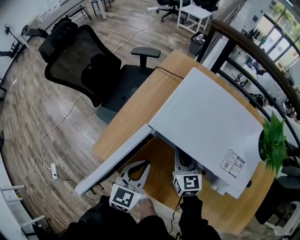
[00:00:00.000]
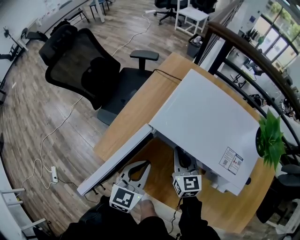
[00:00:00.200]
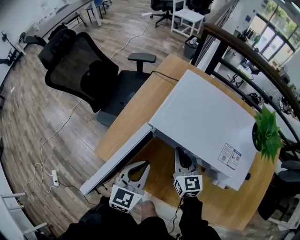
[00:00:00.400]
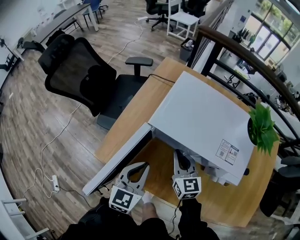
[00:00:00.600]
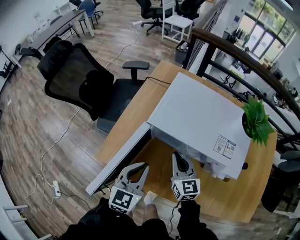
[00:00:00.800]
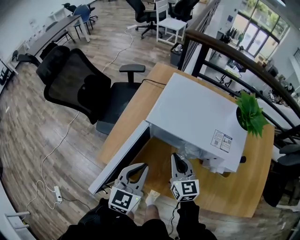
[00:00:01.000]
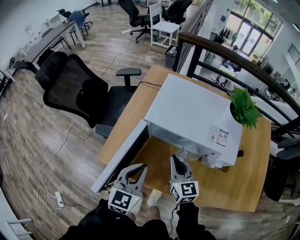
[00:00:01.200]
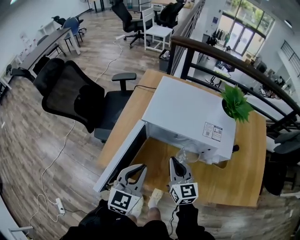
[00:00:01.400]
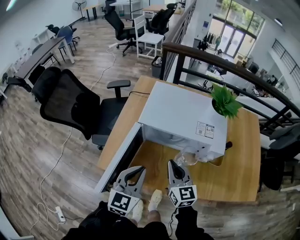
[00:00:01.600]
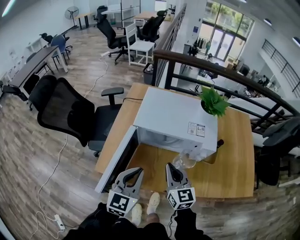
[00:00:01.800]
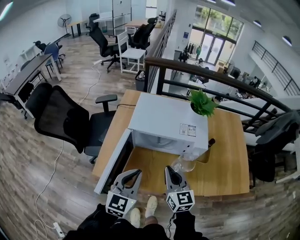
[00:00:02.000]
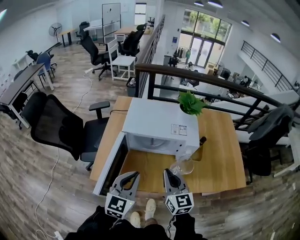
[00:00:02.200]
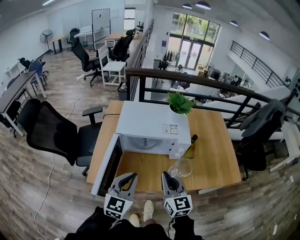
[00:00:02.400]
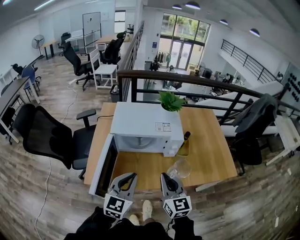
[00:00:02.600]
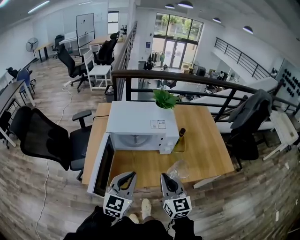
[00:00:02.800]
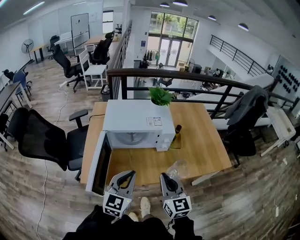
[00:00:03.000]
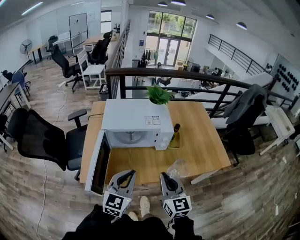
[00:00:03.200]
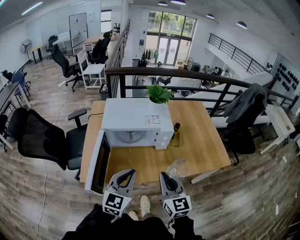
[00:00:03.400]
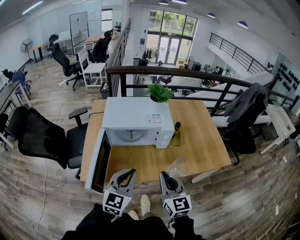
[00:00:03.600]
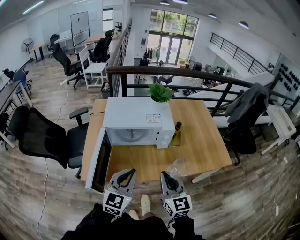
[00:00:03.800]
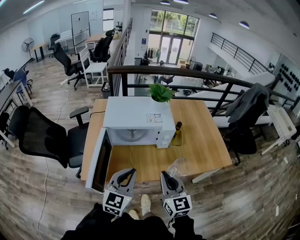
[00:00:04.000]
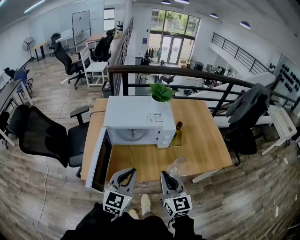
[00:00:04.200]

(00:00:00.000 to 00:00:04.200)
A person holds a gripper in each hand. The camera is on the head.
00:00:00.000 - 00:00:01.400: The left gripper shifts approximately 15 cm upward and backward; the right gripper travels backward and upward by roughly 20 cm.
00:00:01.400 - 00:00:02.800: Both grippers move backward, upward and to the right, roughly 25 cm. The left gripper swivels approximately 20 degrees; the right gripper swivels approximately 20 degrees.
00:00:02.800 - 00:00:04.200: The grippers move only a little.

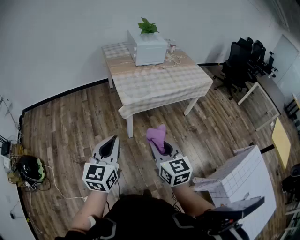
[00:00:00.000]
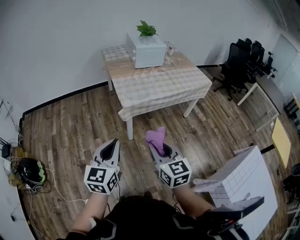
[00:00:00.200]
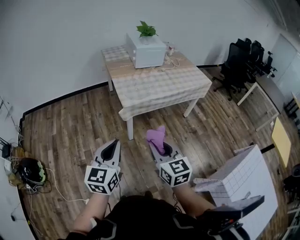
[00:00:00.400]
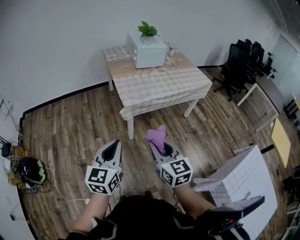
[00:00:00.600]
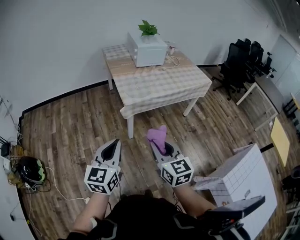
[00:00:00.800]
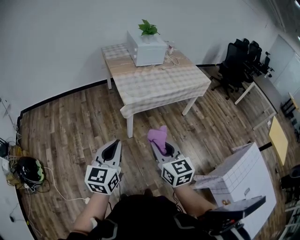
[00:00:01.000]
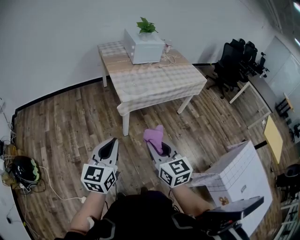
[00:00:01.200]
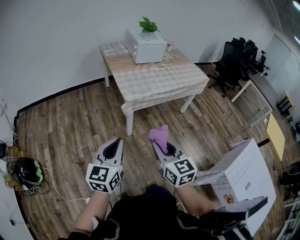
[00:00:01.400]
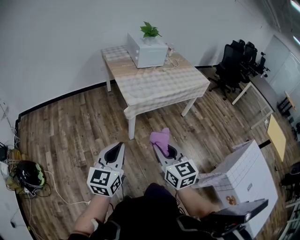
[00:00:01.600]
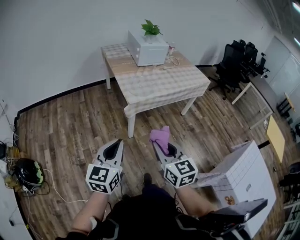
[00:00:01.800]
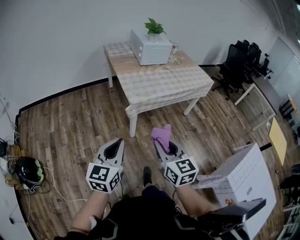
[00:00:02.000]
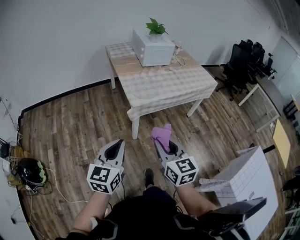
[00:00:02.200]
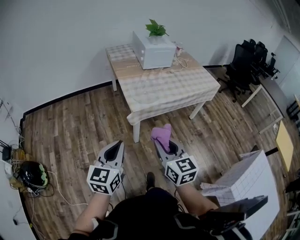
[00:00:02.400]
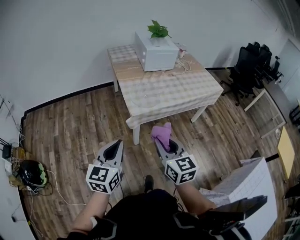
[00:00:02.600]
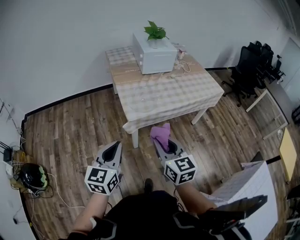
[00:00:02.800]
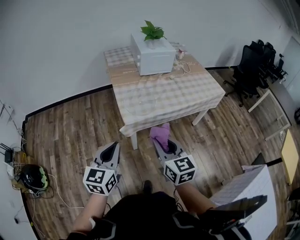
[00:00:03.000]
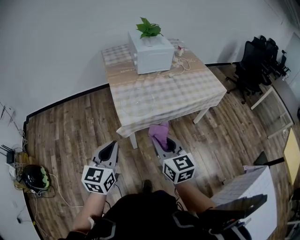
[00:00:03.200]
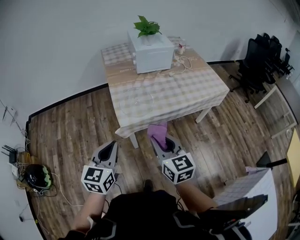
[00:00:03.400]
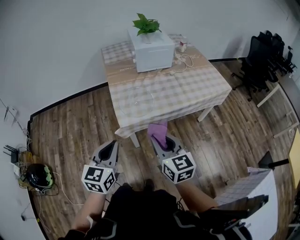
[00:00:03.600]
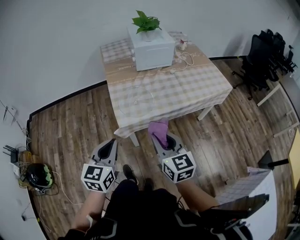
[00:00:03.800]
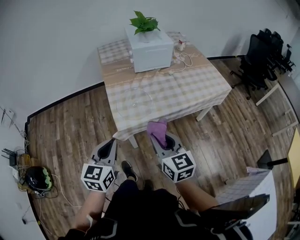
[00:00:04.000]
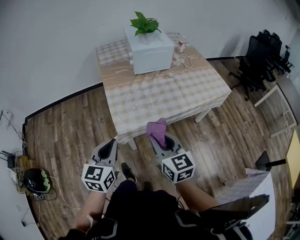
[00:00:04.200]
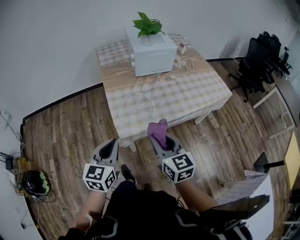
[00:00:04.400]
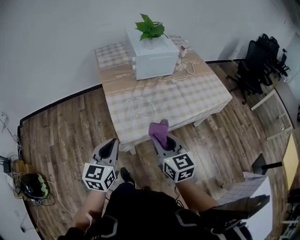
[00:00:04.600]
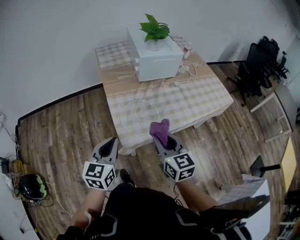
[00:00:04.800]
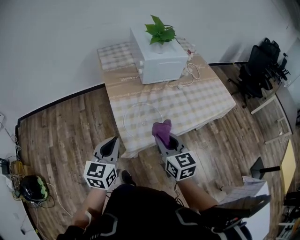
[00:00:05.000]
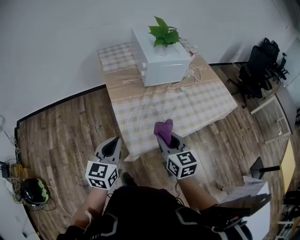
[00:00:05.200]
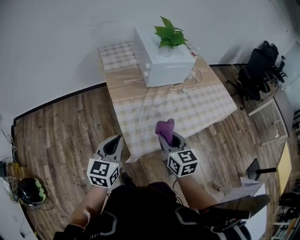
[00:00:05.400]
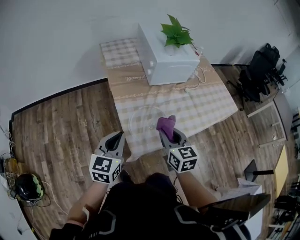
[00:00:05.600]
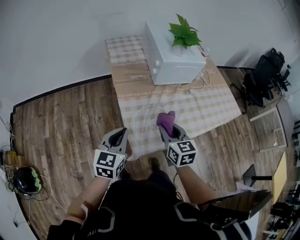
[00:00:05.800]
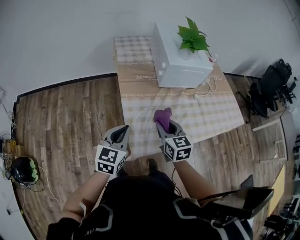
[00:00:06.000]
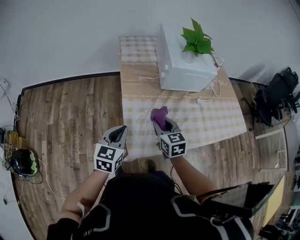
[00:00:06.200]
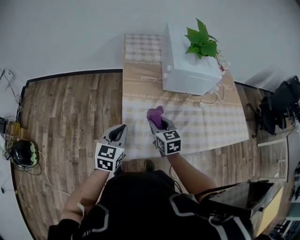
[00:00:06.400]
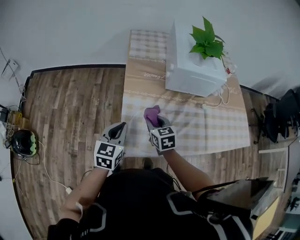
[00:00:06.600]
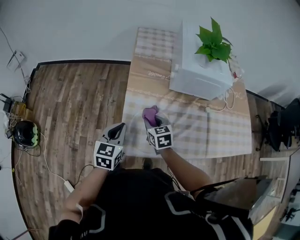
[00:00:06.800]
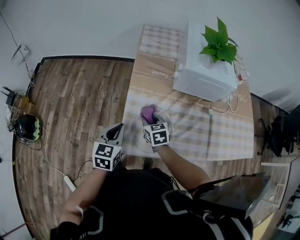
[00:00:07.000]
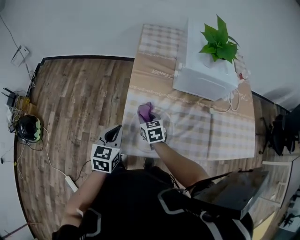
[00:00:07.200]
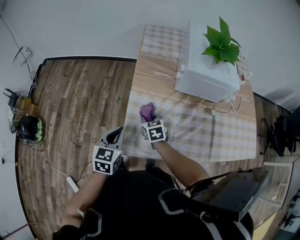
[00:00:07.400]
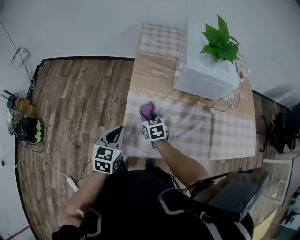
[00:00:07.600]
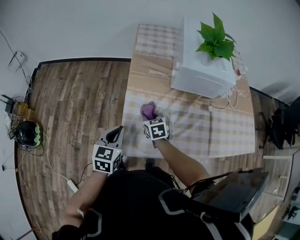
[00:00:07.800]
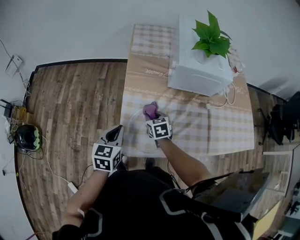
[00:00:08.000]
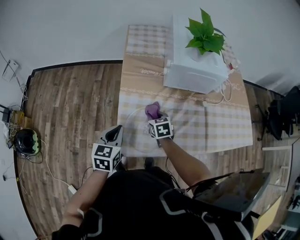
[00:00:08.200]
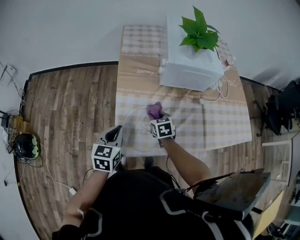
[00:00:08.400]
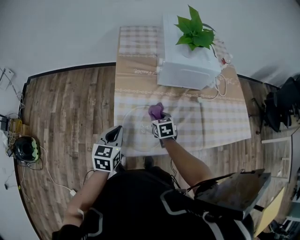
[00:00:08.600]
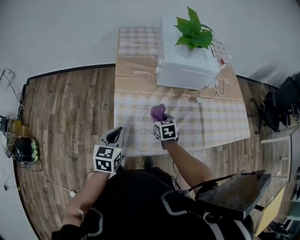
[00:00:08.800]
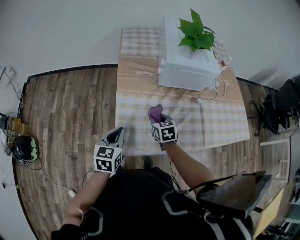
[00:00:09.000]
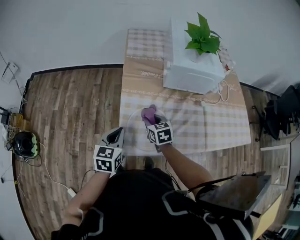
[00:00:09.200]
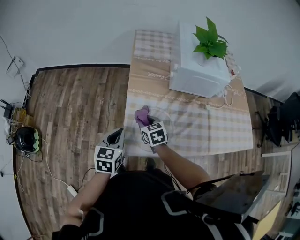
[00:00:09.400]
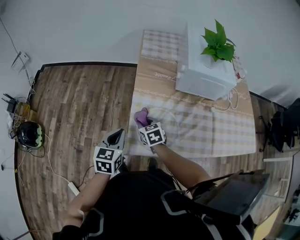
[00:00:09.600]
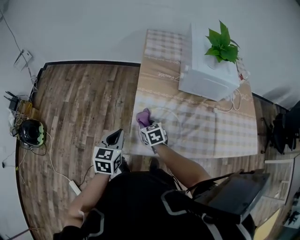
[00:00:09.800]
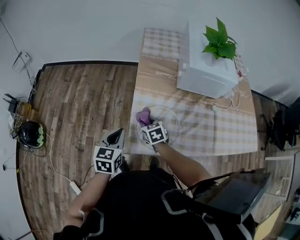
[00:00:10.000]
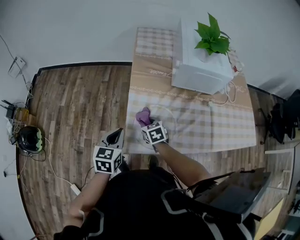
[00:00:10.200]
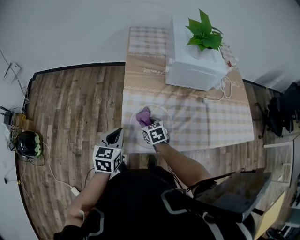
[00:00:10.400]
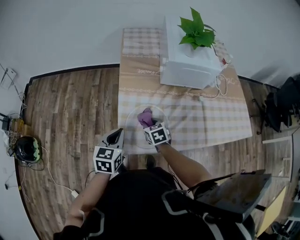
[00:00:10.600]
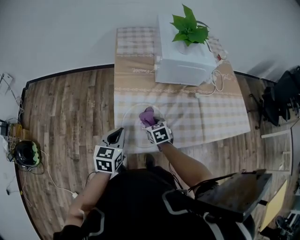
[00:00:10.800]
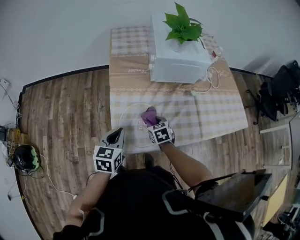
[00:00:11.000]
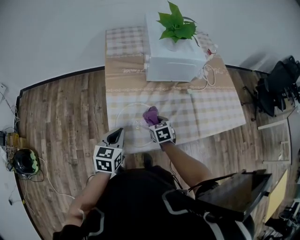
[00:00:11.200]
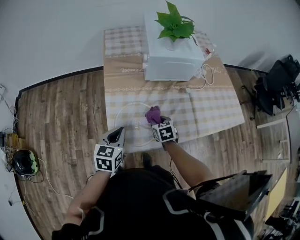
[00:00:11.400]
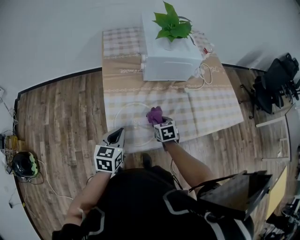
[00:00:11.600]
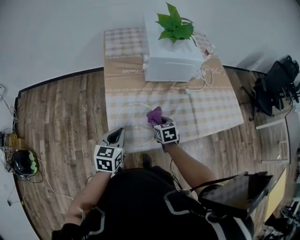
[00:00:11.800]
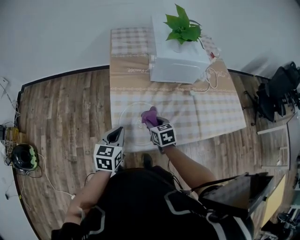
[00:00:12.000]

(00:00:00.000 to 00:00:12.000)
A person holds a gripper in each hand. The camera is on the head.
00:00:00.000 - 00:00:01.600: The right gripper is displaced to the left and backward by some 10 cm. Meanwhile the left gripper goes roughly 5 cm to the left.
00:00:01.600 - 00:00:03.000: The two grippers go about 20 cm forward.
00:00:03.000 - 00:00:04.400: Both grippers move forward, roughly 15 cm.
00:00:04.400 - 00:00:06.000: Both grippers travel together forward and to the left, some 25 cm.
00:00:06.000 - 00:00:07.600: The left gripper goes about 5 cm downward, and rotates some 20 degrees; the right gripper moves downward and forward, about 20 cm, and rotates approximately 30 degrees.
00:00:07.600 - 00:00:09.000: The right gripper moves to the right, approximately 10 cm.
00:00:09.000 - 00:00:10.400: The right gripper shifts approximately 10 cm to the left.
00:00:10.400 - 00:00:12.000: The right gripper is displaced to the right by roughly 10 cm.

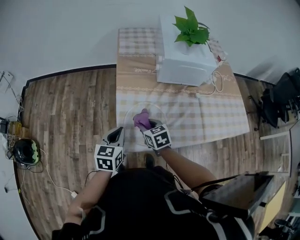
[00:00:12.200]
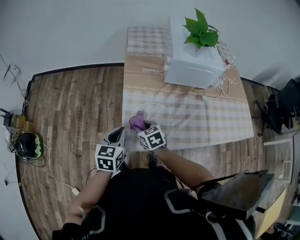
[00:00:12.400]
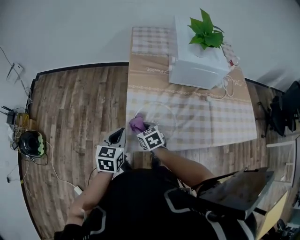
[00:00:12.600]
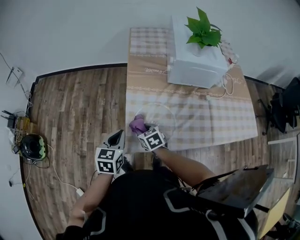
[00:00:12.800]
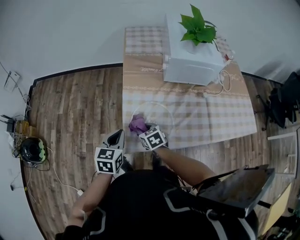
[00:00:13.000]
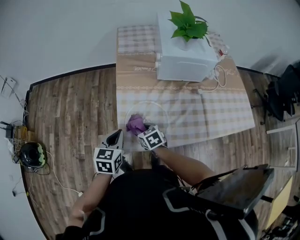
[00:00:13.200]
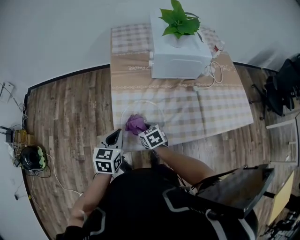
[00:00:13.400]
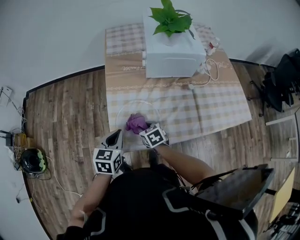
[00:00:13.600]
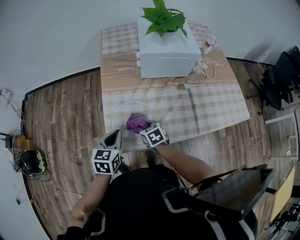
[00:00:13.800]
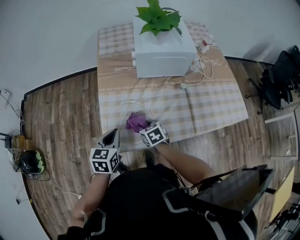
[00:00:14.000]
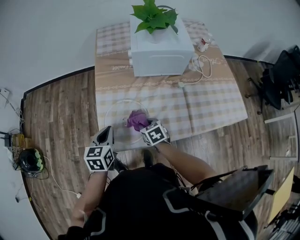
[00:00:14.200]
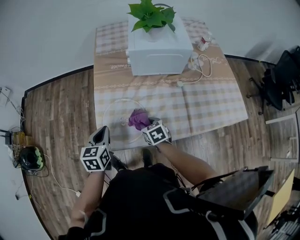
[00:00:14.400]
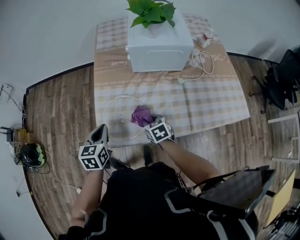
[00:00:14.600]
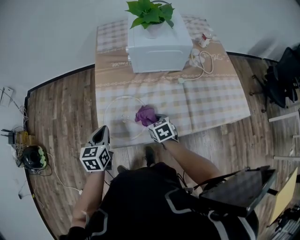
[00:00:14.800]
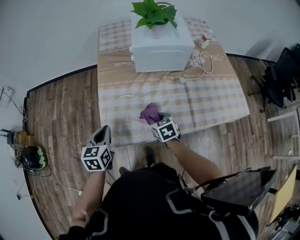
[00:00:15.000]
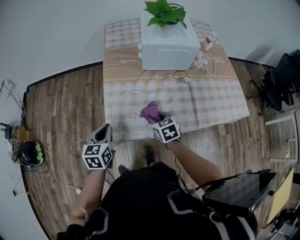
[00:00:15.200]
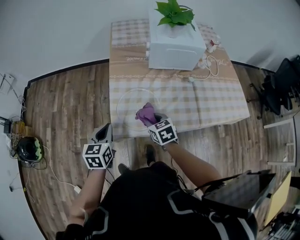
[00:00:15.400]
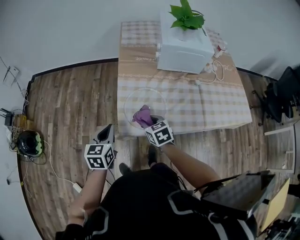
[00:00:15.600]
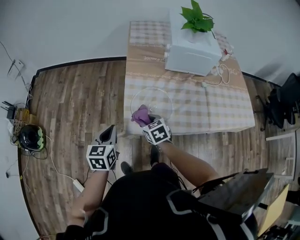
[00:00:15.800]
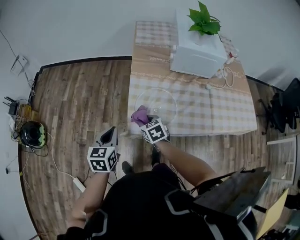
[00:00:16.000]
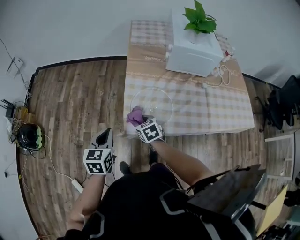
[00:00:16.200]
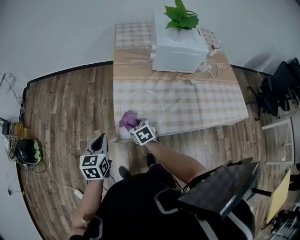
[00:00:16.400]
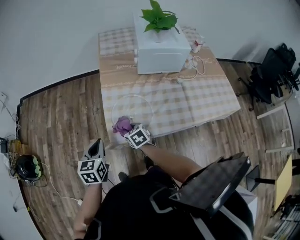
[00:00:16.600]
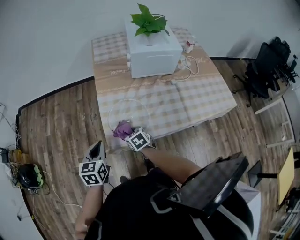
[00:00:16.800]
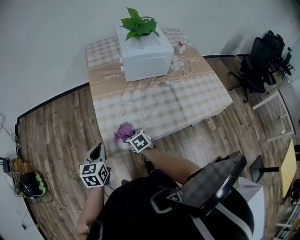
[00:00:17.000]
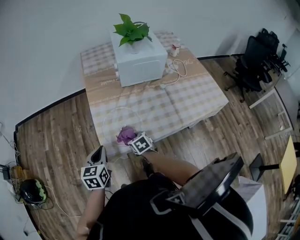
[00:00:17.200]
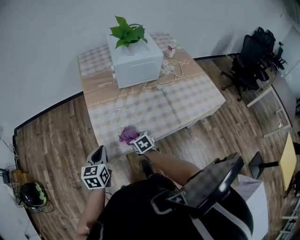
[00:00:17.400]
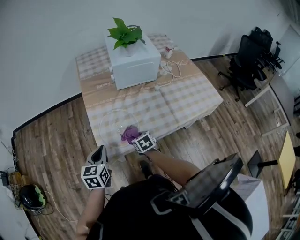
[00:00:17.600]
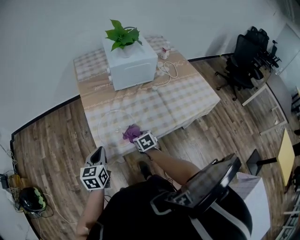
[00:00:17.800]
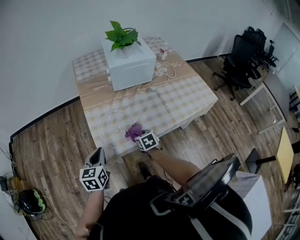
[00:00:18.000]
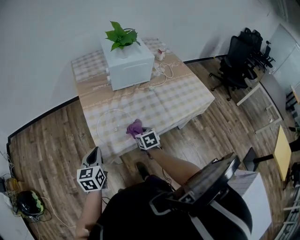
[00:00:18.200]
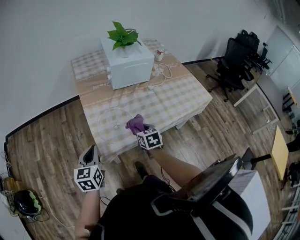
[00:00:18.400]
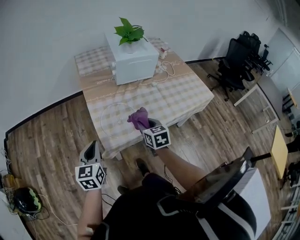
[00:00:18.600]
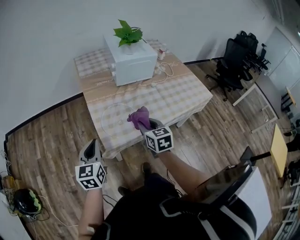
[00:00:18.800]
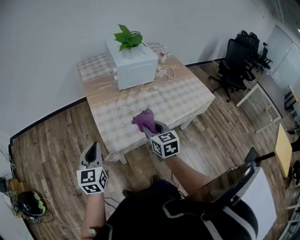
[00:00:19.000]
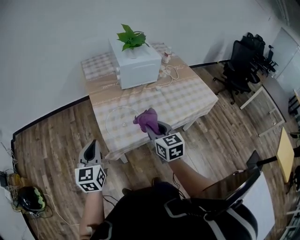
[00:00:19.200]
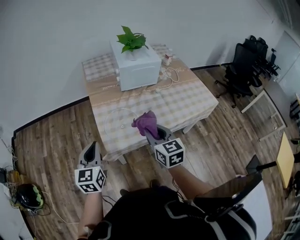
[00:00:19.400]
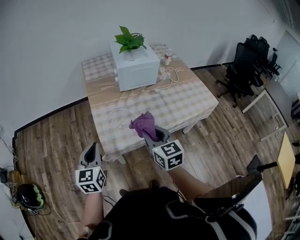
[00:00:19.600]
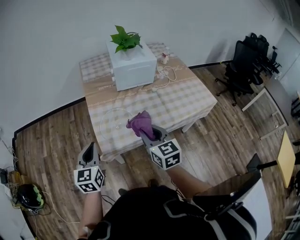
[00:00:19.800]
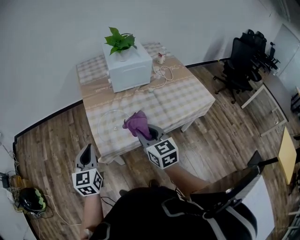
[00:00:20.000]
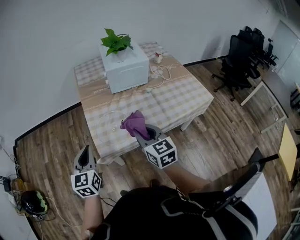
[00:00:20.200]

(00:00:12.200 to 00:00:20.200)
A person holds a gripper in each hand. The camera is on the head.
00:00:12.200 - 00:00:13.800: The right gripper moves downward and to the right, approximately 10 cm, while the left gripper travels to the right by roughly 5 cm.
00:00:13.800 - 00:00:15.400: The right gripper shifts roughly 5 cm upward, and goes to the right and returns, roughly 10 cm each way; the left gripper travels to the left by approximately 10 cm.
00:00:15.400 - 00:00:17.000: The right gripper goes approximately 5 cm downward.
00:00:17.000 - 00:00:18.600: The right gripper heads upward and to the right, covering approximately 15 cm, and rotates roughly 30 degrees. Meanwhile the left gripper travels upward by approximately 5 cm.
00:00:18.600 - 00:00:20.200: The right gripper heads upward and backward, covering some 15 cm. The left gripper moves upward, approximately 5 cm.
